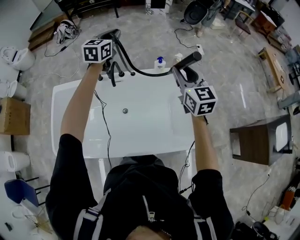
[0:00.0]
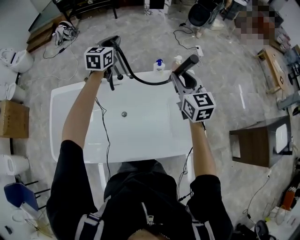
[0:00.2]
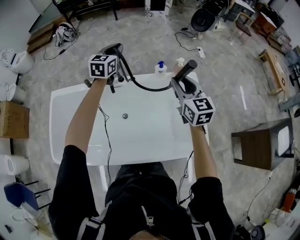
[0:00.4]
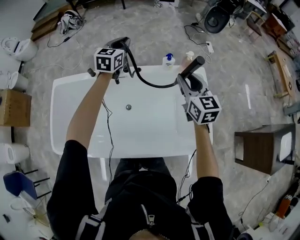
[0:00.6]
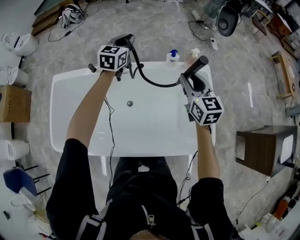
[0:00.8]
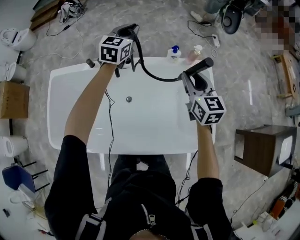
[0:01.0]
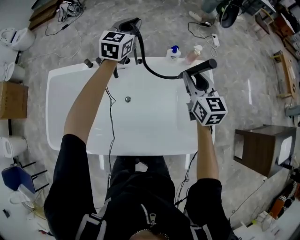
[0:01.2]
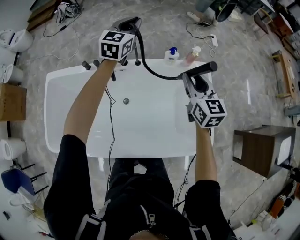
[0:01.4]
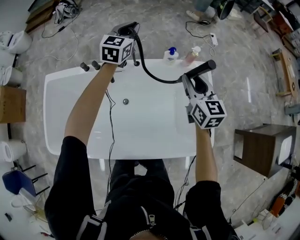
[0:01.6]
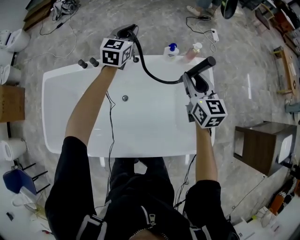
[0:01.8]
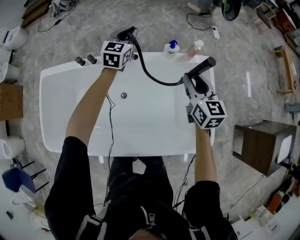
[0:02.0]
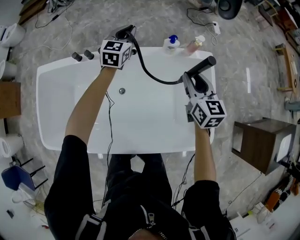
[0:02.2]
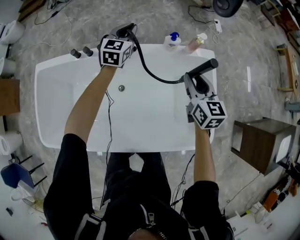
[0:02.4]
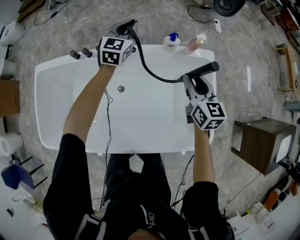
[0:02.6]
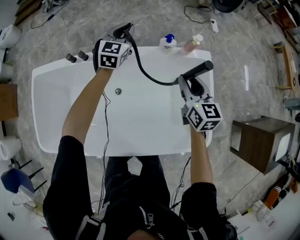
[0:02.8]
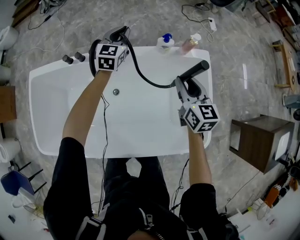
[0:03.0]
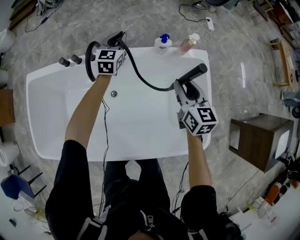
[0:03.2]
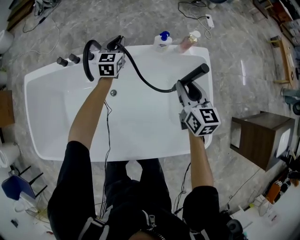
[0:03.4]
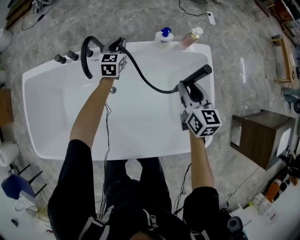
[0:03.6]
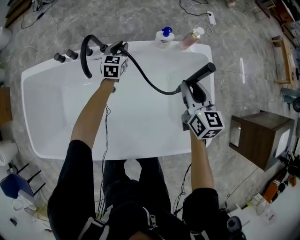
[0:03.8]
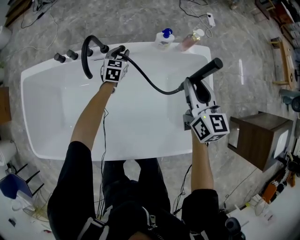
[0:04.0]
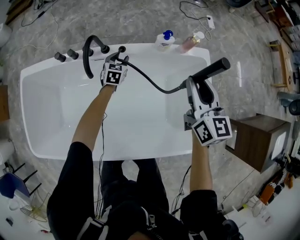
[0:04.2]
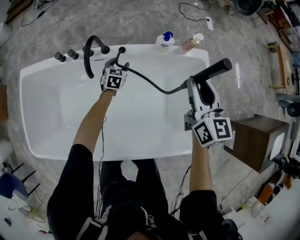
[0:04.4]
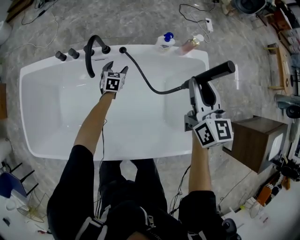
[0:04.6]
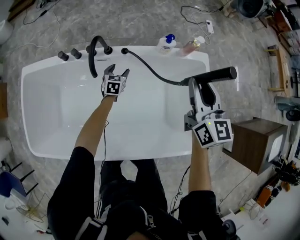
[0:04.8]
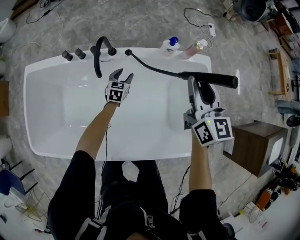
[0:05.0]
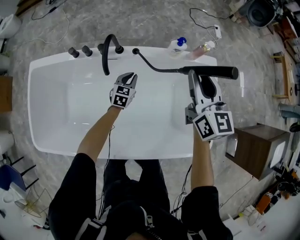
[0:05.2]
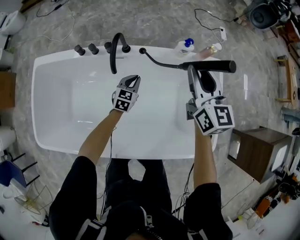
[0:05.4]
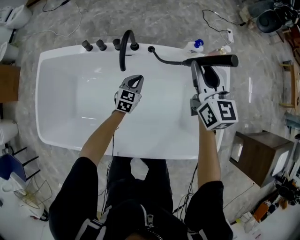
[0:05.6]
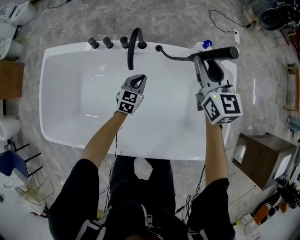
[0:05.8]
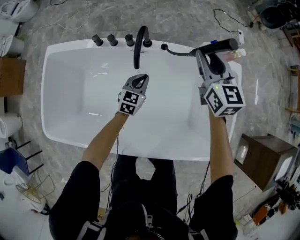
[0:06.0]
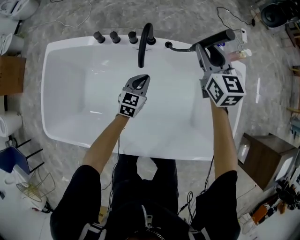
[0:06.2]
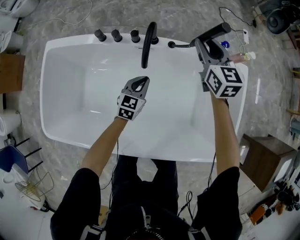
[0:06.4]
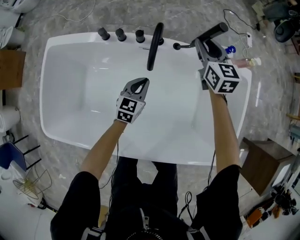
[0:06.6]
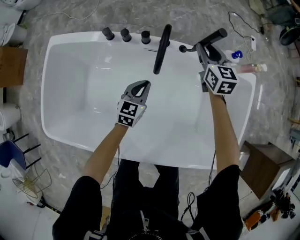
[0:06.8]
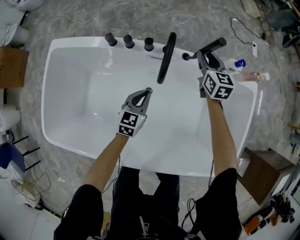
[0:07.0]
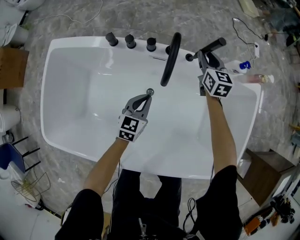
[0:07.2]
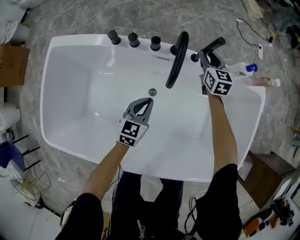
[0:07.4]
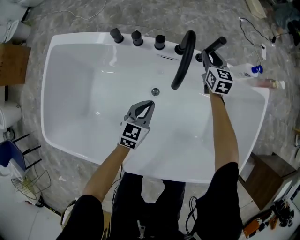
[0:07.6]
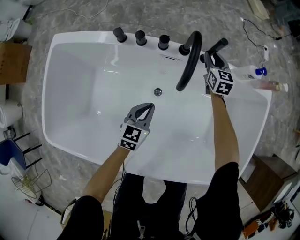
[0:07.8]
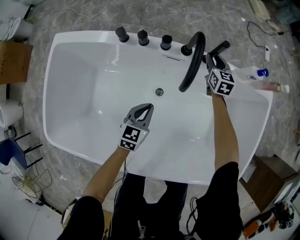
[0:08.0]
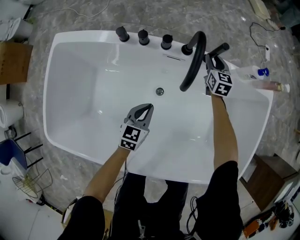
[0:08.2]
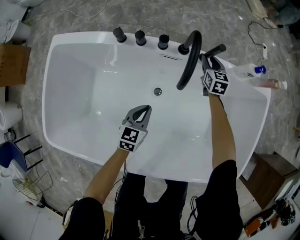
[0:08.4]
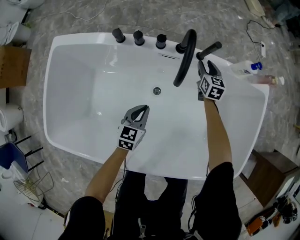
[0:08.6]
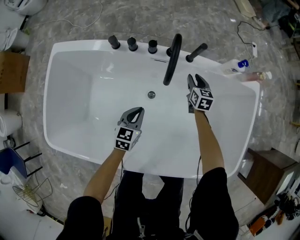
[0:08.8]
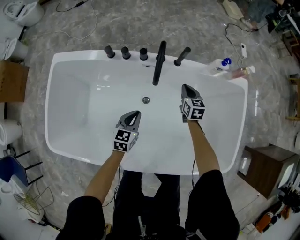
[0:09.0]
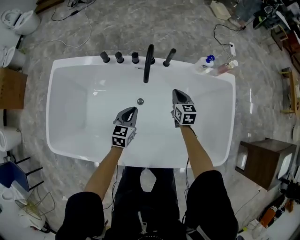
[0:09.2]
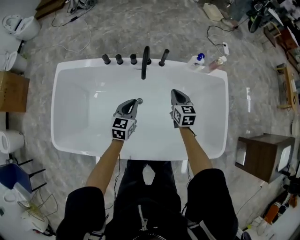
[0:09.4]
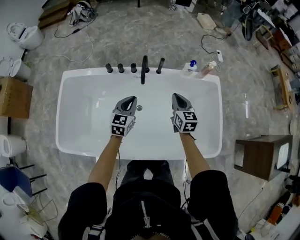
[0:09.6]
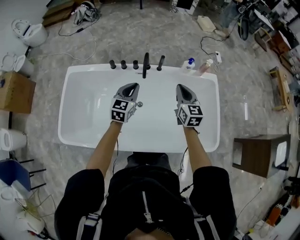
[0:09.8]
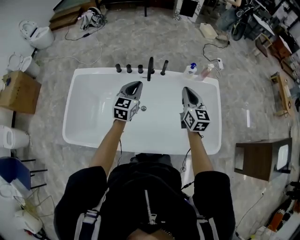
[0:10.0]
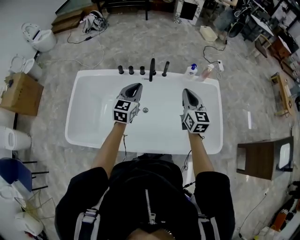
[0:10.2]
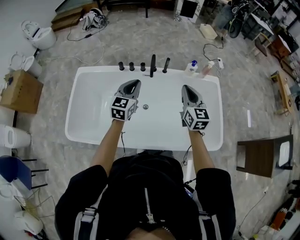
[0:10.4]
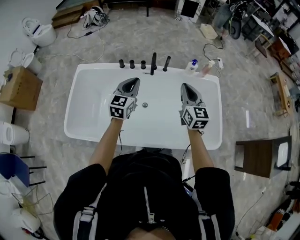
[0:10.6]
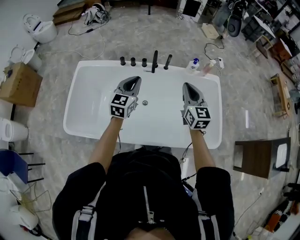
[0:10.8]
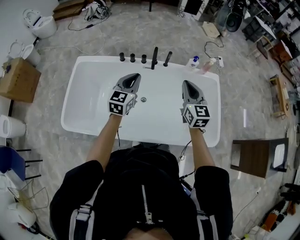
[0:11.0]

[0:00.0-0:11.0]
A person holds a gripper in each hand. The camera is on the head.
0.0 to 1.6 s: The two grippers go about 15 cm downward and forward.
1.6 to 3.2 s: The left gripper moves downward, approximately 20 cm, while the right gripper is displaced downward by some 10 cm.
3.2 to 4.8 s: The left gripper shifts approximately 25 cm downward and backward, turns by approximately 30 degrees, and opens its fingers; the right gripper heads upward, covering some 10 cm.
4.8 to 6.2 s: The left gripper moves backward, upward and to the left, approximately 15 cm, and closes up, while the right gripper moves to the left, forward and downward, about 20 cm.
6.2 to 7.8 s: The left gripper moves to the left, downward and backward, approximately 15 cm. Meanwhile the right gripper moves downward and forward, approximately 30 cm.
7.8 to 9.4 s: The left gripper heads upward, covering about 20 cm; the right gripper shifts roughly 30 cm backward and upward, and closes its fingers.
9.4 to 11.0 s: The left gripper moves upward, about 25 cm, while the right gripper travels upward and backward by some 30 cm, and changes its angle by approximately 20 degrees.

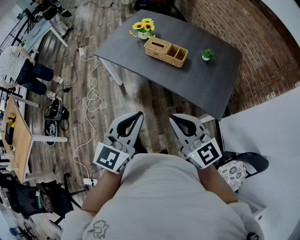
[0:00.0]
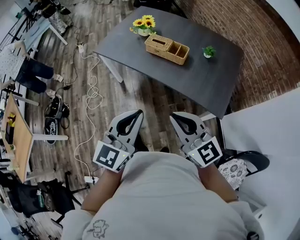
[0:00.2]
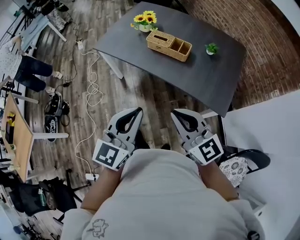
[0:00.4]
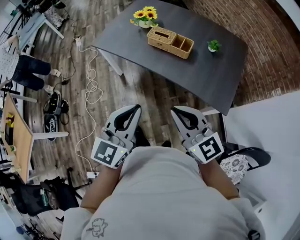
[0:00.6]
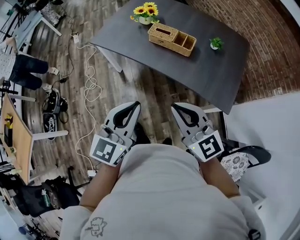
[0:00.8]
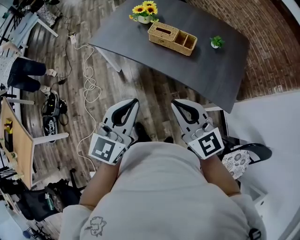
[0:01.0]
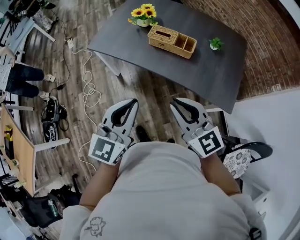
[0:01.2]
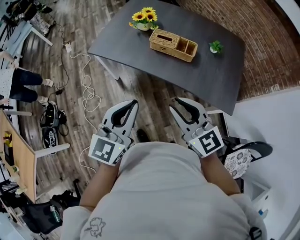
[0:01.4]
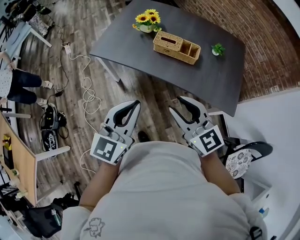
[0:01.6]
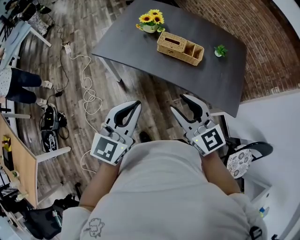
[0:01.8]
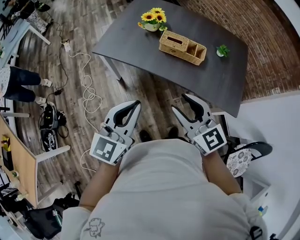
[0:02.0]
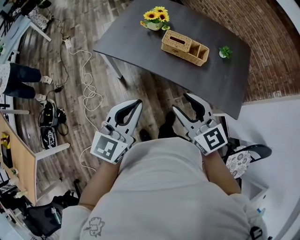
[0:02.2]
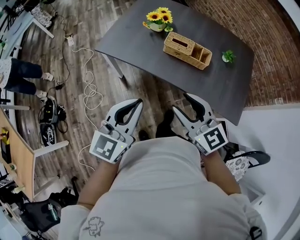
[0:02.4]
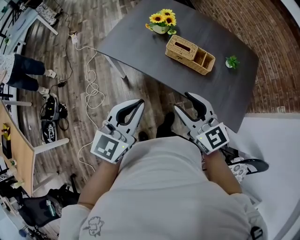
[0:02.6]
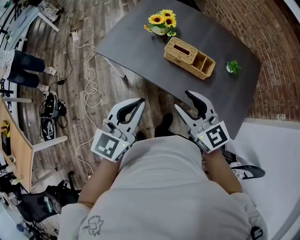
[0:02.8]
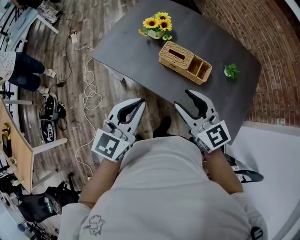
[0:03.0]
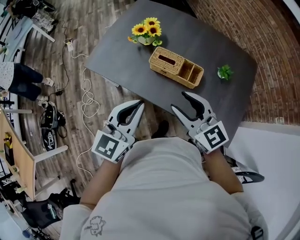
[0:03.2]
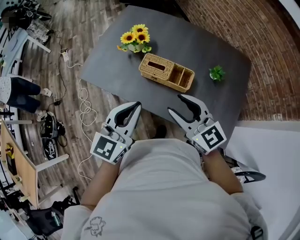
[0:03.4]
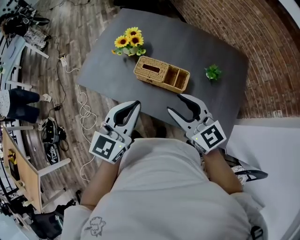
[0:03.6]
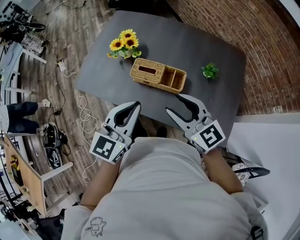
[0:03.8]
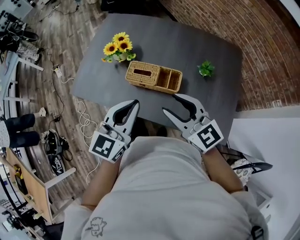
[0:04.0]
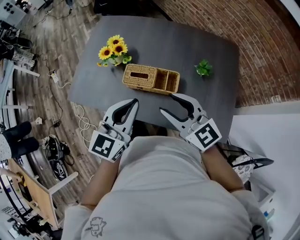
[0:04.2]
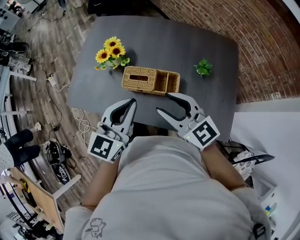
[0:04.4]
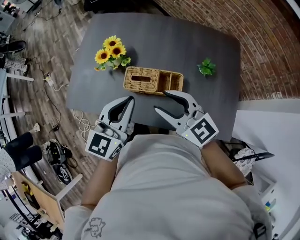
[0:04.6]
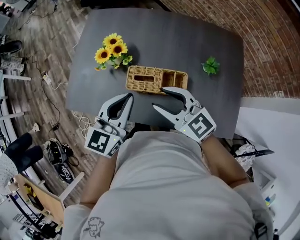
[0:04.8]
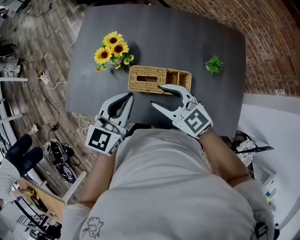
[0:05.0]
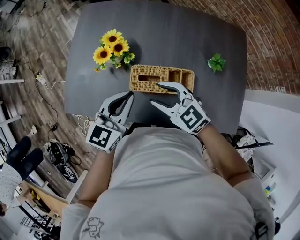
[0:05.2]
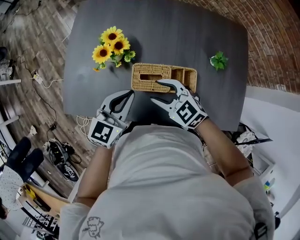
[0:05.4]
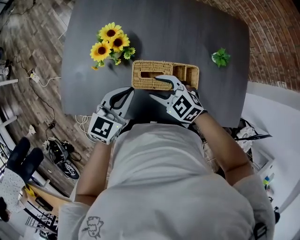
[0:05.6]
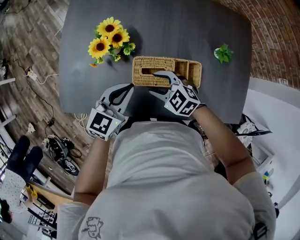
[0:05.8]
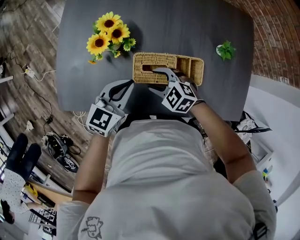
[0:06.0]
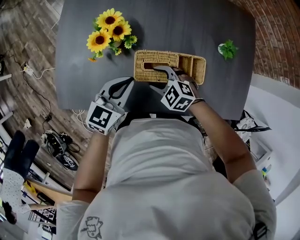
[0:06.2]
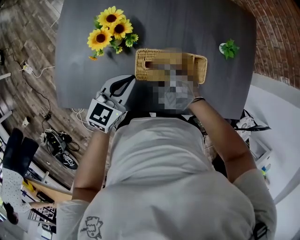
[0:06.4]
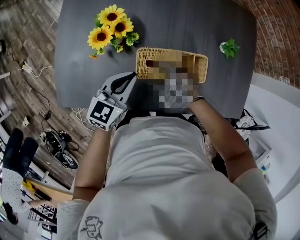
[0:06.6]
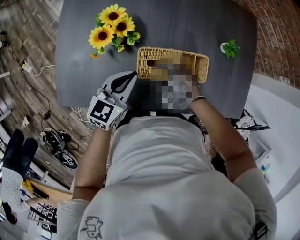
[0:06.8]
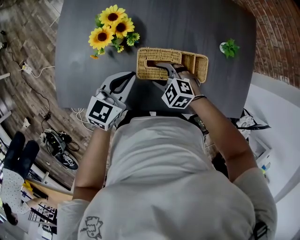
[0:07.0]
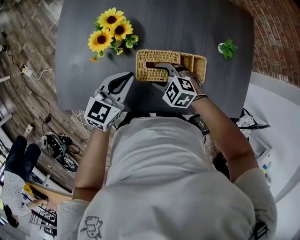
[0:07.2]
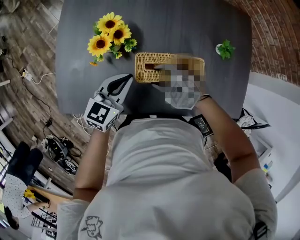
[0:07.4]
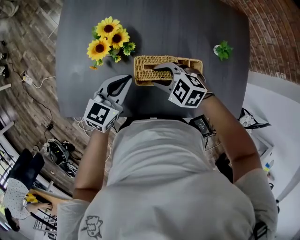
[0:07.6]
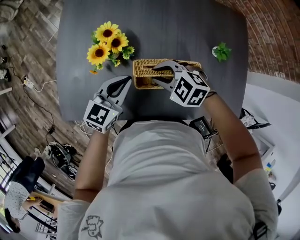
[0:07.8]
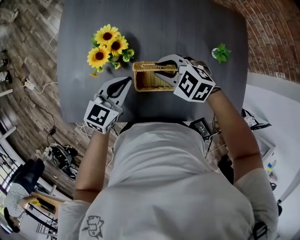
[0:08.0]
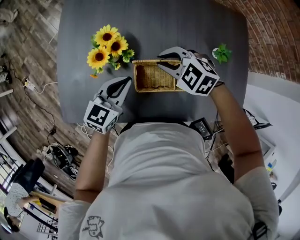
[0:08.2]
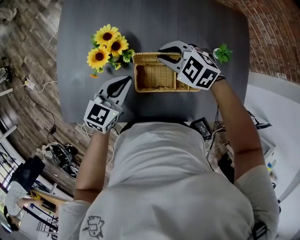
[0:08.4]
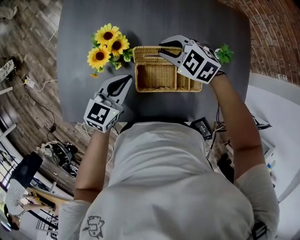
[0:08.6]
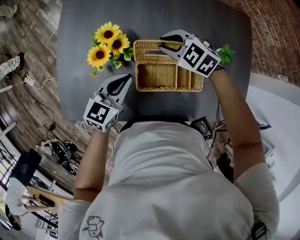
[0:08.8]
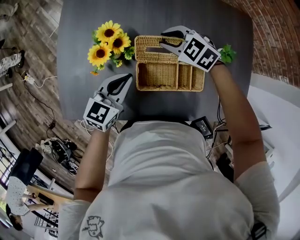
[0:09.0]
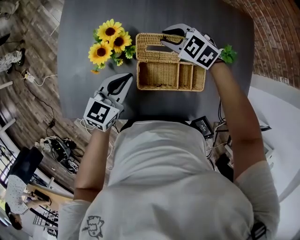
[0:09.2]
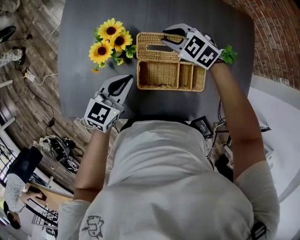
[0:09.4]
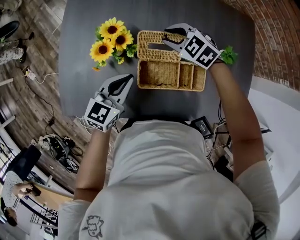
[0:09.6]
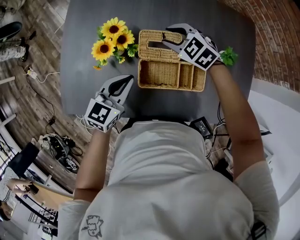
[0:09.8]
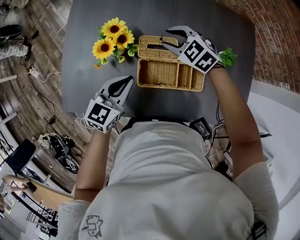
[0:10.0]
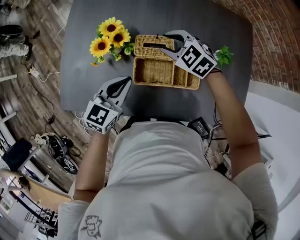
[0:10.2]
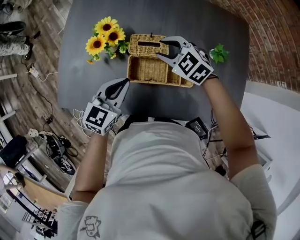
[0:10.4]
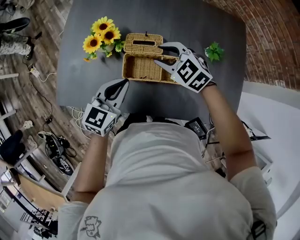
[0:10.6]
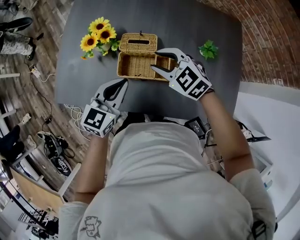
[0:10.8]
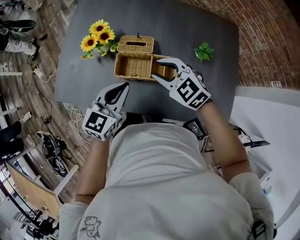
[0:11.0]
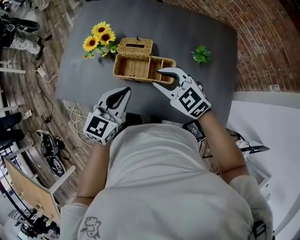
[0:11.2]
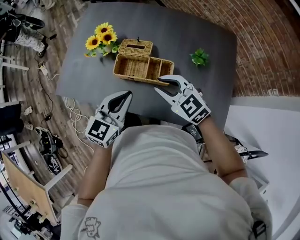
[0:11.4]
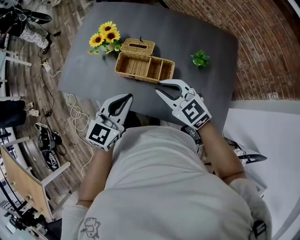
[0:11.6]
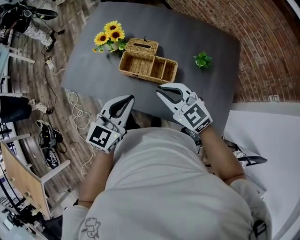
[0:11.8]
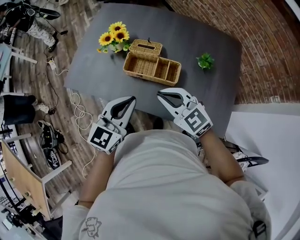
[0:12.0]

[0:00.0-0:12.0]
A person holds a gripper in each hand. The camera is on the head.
0.0 to 1.6 s: Both grippers move forward and to the left, some 20 cm. The right gripper opens its fingers.
1.6 to 3.0 s: Both grippers travel together forward, about 15 cm.
3.0 to 4.4 s: The grippers both shift forward and to the right by roughly 15 cm.
4.4 to 6.0 s: Both grippers travel together downward, forward and to the left, approximately 30 cm. The right gripper tilts its fingers some 40 degrees downward. The left gripper swivels about 20 degrees.
6.0 to 7.6 s: The right gripper ends up some 5 cm from where it was.
7.6 to 9.0 s: The right gripper shifts approximately 15 cm forward.
9.0 to 10.4 s: Both grippers travel together backward, about 5 cm.
10.4 to 12.0 s: The grippers both shift backward and upward by some 25 cm. The right gripper changes its angle by approximately 30 degrees, and closes up.

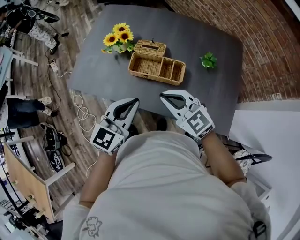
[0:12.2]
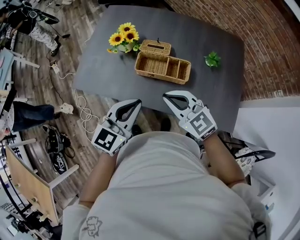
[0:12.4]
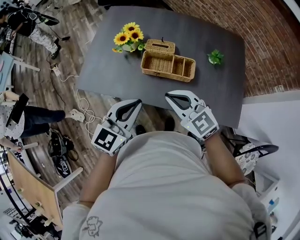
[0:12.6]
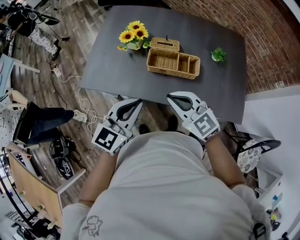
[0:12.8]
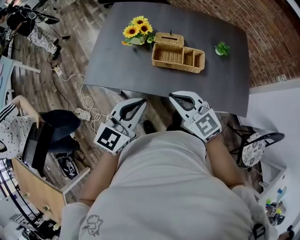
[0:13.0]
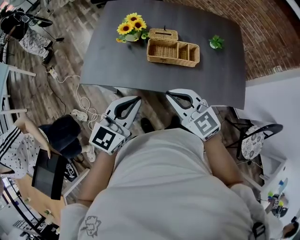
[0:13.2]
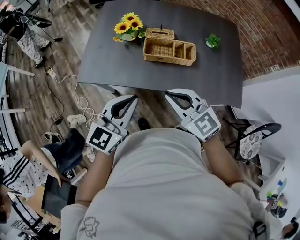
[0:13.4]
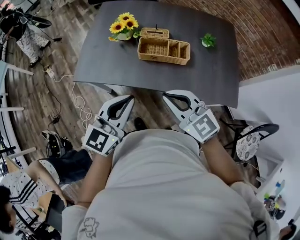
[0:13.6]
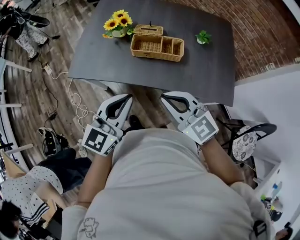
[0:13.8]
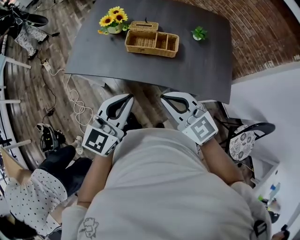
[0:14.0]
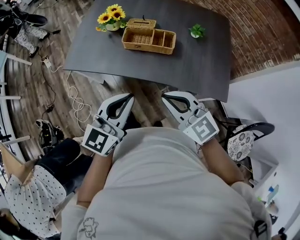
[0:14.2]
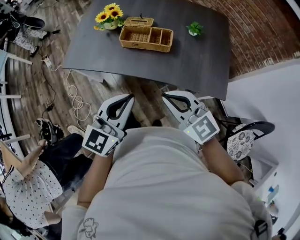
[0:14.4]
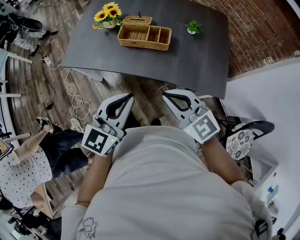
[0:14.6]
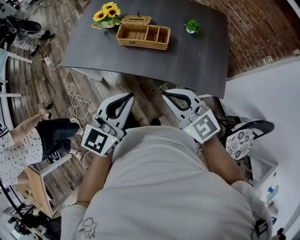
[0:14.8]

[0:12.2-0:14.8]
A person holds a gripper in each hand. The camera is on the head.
12.2 to 13.4 s: The two grippers go about 15 cm to the left and backward.
13.4 to 14.8 s: The grippers both shift to the right and backward by approximately 20 cm.
